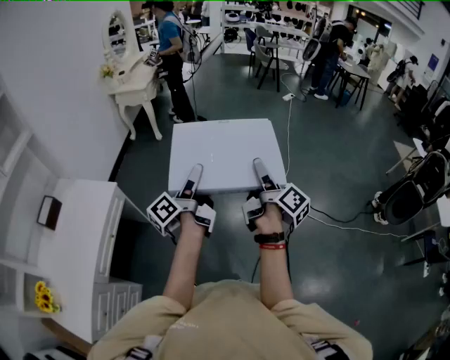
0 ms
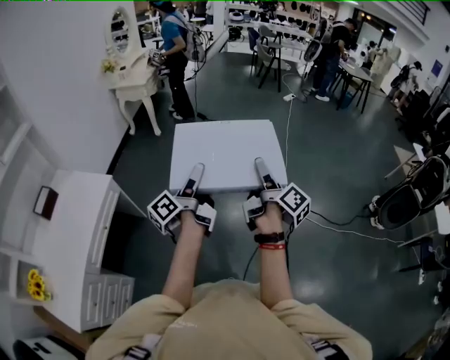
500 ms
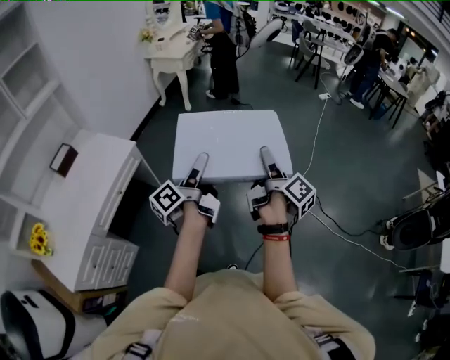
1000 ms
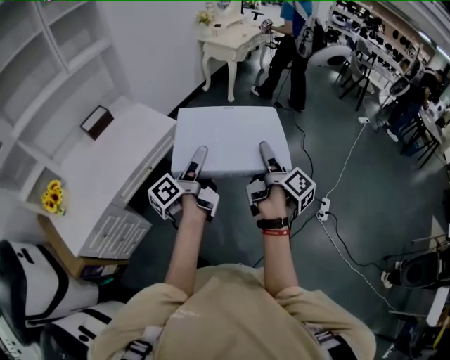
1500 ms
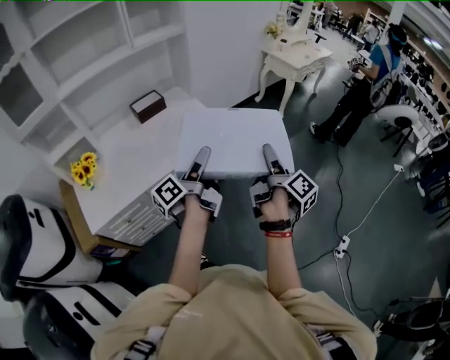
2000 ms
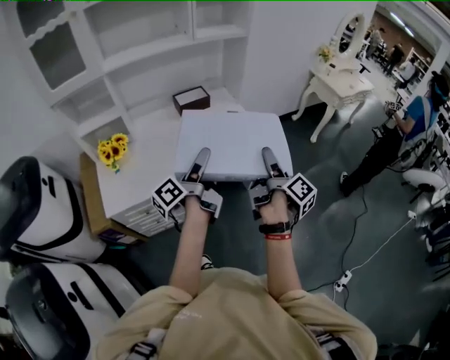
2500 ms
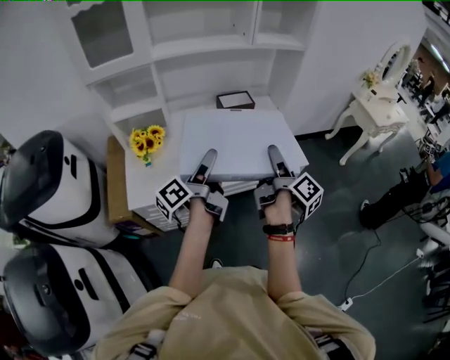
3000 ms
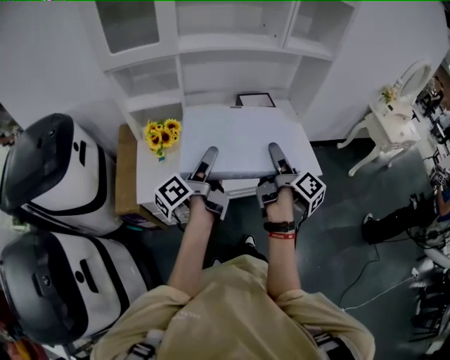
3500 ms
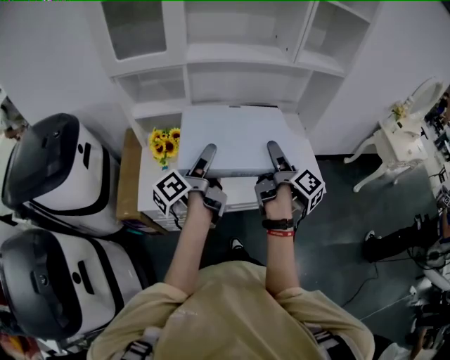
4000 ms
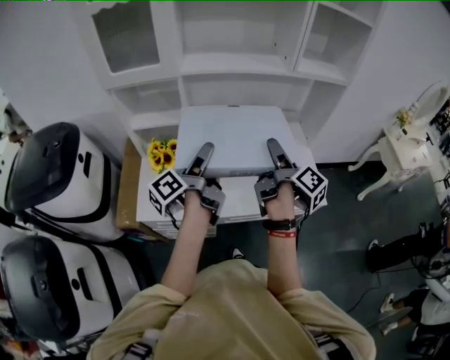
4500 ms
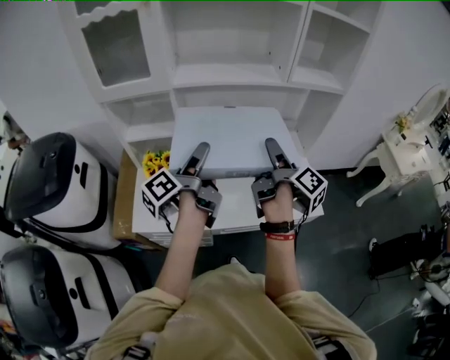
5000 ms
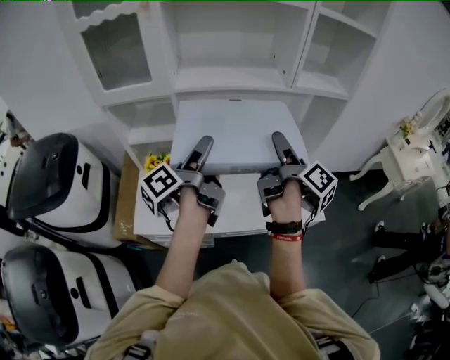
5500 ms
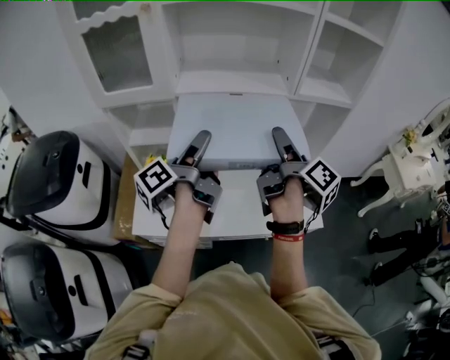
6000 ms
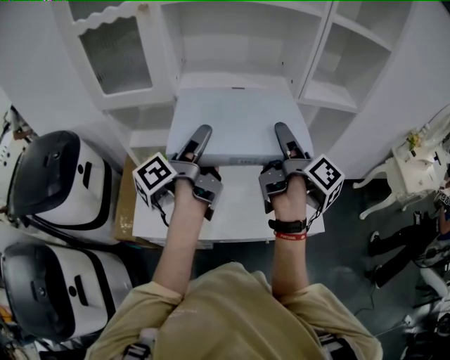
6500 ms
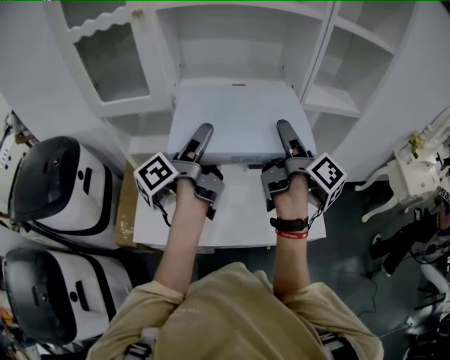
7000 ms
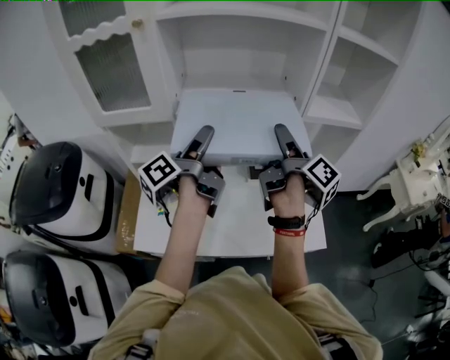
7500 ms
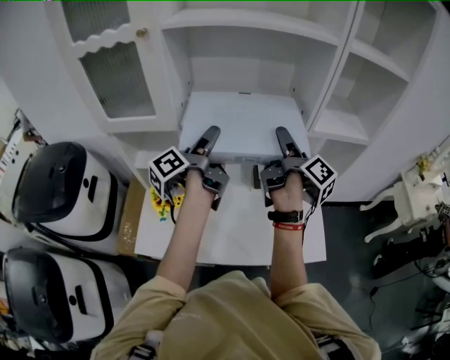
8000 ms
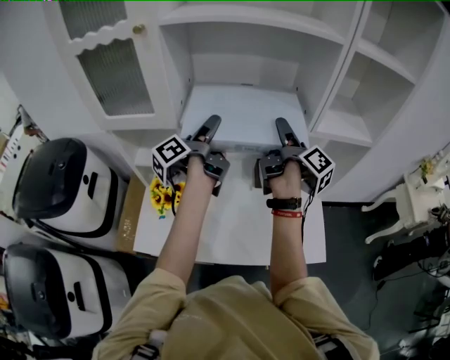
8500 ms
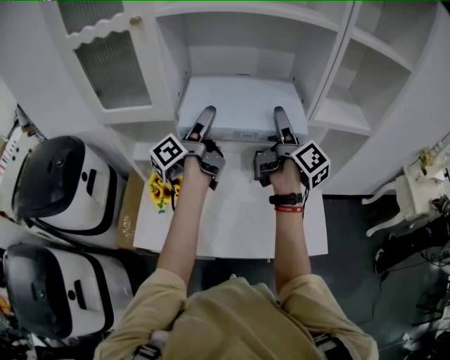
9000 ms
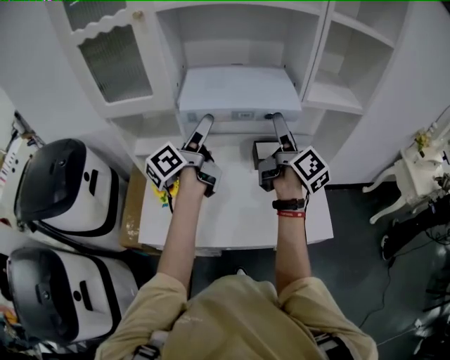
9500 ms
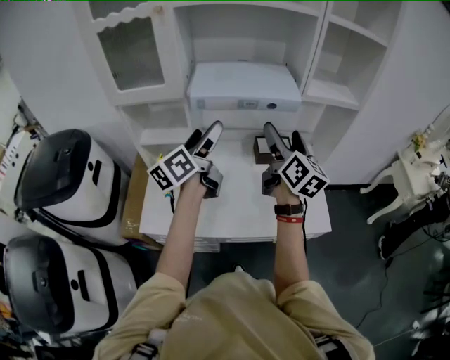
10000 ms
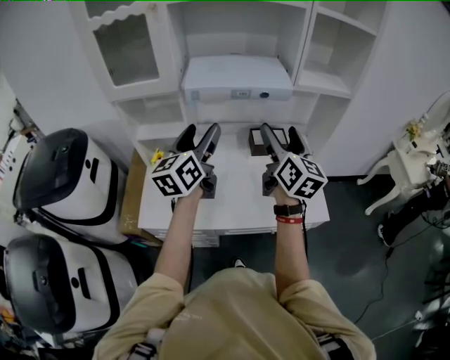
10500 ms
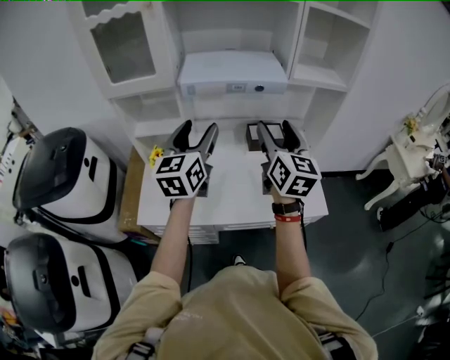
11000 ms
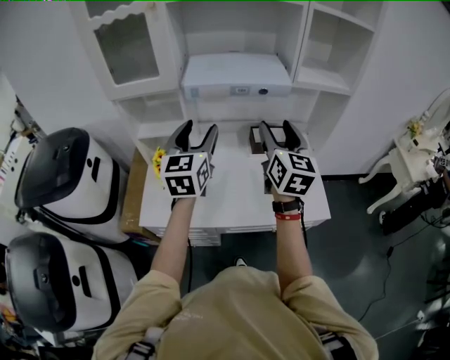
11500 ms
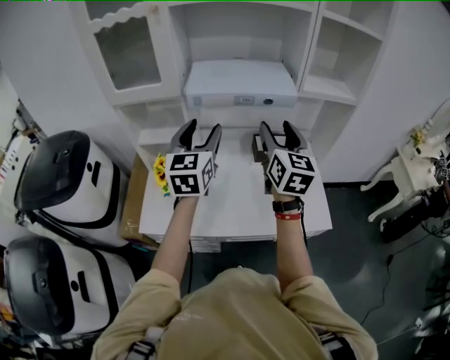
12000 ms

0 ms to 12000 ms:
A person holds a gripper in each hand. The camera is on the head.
0 ms to 2000 ms: The left gripper ends up roughly 40 cm from where it was, and changes its angle by roughly 40 degrees; the right gripper shifts by approximately 40 cm, and turns by some 40 degrees.
2000 ms to 4000 ms: Both grippers are carried about 40 cm. The right gripper swivels approximately 40 degrees; the left gripper rotates roughly 30 degrees.
4000 ms to 6000 ms: The grippers both shift upward and forward by roughly 15 cm.
6000 ms to 8000 ms: Both grippers travel together forward, about 15 cm.
8000 ms to 10000 ms: Both grippers travel together backward, roughly 10 cm. The right gripper rolls counterclockwise, seen from behind, by some 50 degrees. Meanwhile the left gripper rotates about 40 degrees.
10000 ms to 12000 ms: The left gripper rolls clockwise, seen from behind, by about 50 degrees, and closes its fingers, while the right gripper swivels some 20 degrees, and closes up.

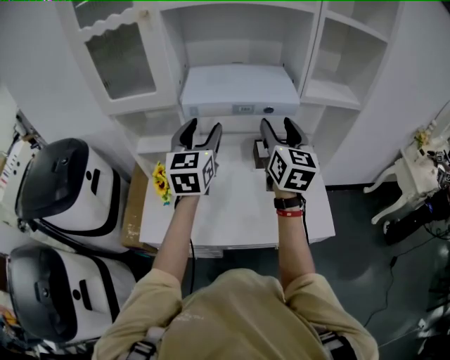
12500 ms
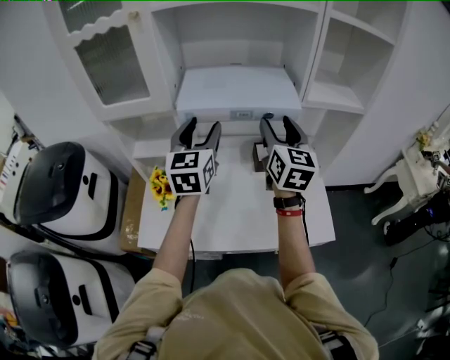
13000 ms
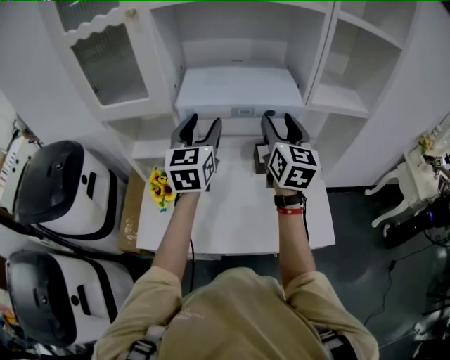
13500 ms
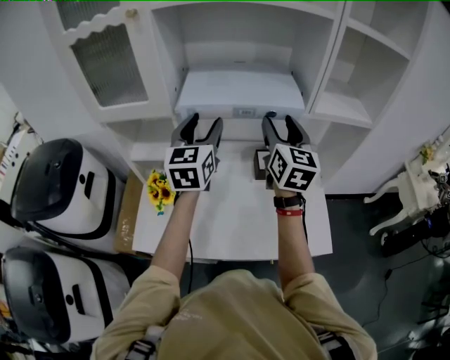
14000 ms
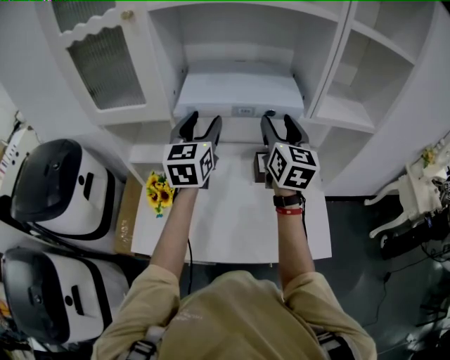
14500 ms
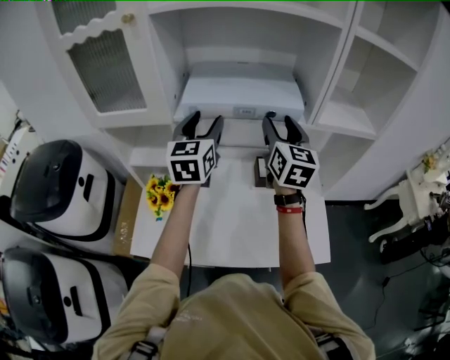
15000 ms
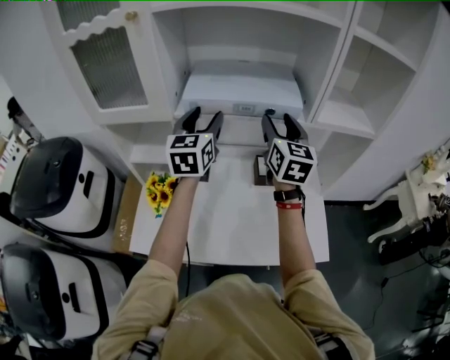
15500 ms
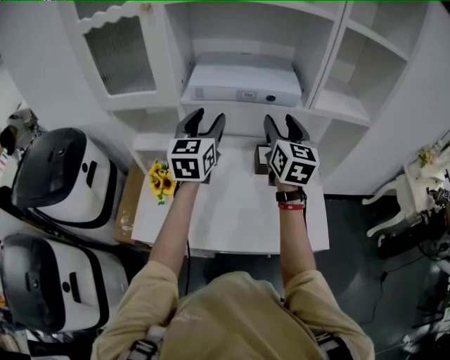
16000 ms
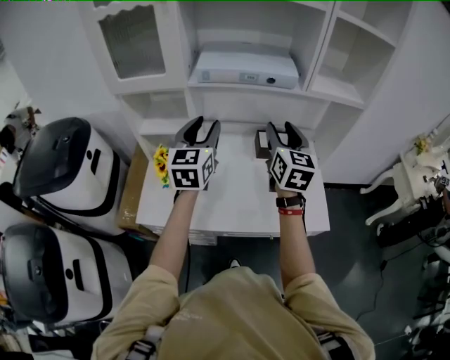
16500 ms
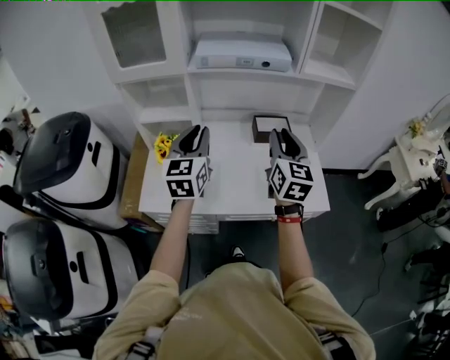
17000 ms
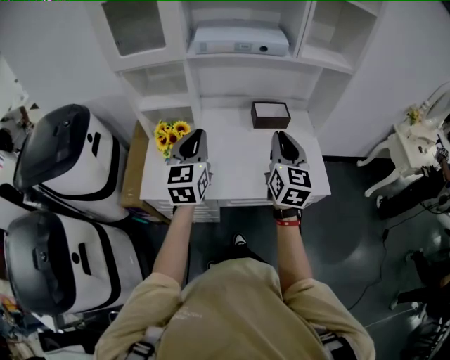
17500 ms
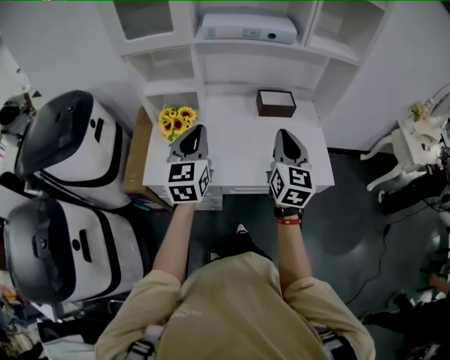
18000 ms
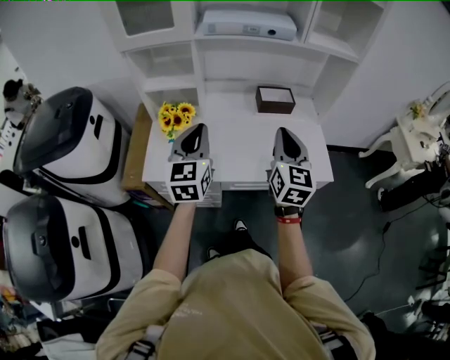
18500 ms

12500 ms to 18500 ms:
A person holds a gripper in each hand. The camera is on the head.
12500 ms to 14500 ms: The two grippers go roughly 10 cm forward.
14500 ms to 16500 ms: Both grippers travel together backward, about 15 cm.
16500 ms to 18500 ms: The left gripper is displaced backward and downward by about 20 cm, and closes its fingers. The right gripper heads backward, covering approximately 20 cm, and closes.

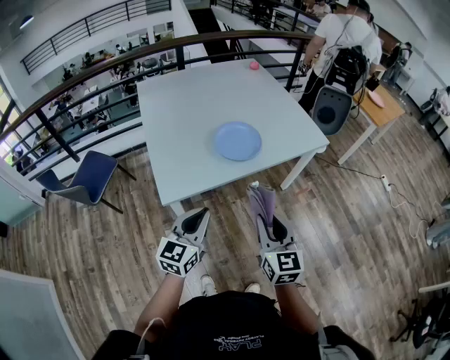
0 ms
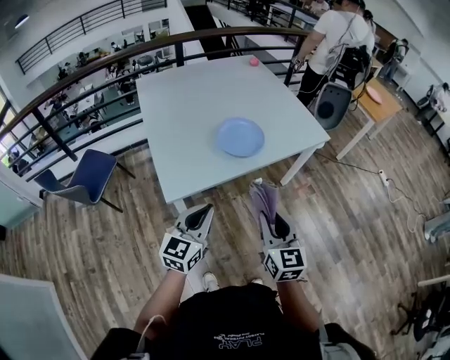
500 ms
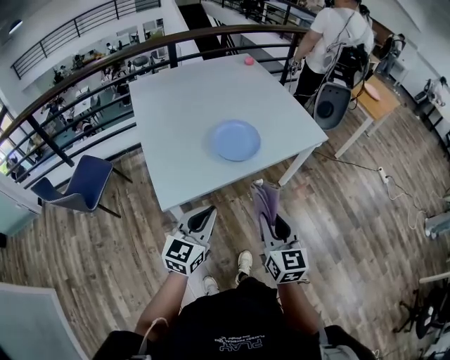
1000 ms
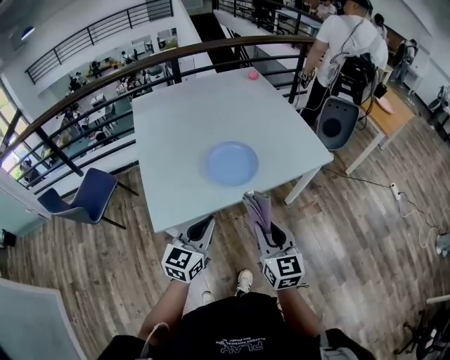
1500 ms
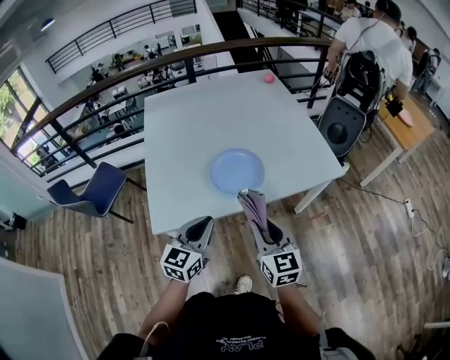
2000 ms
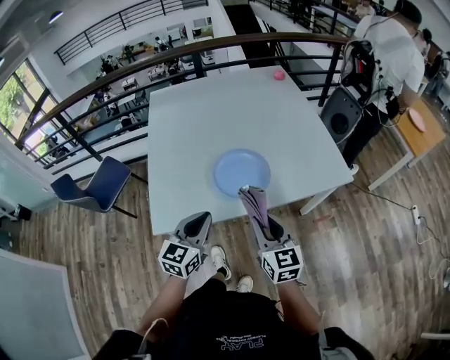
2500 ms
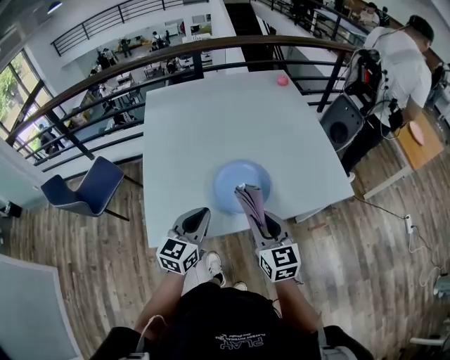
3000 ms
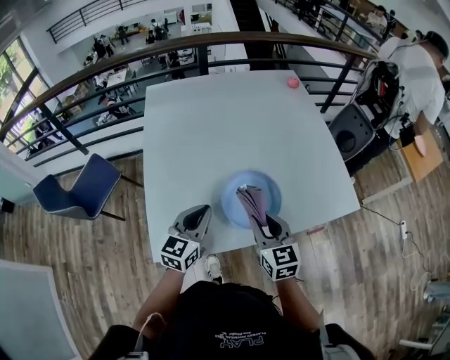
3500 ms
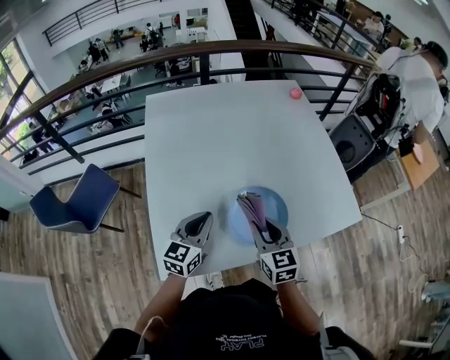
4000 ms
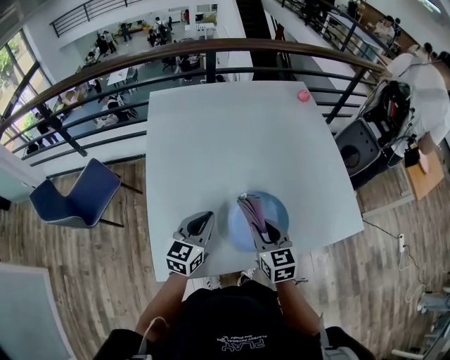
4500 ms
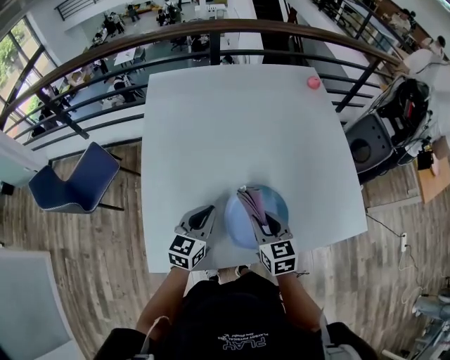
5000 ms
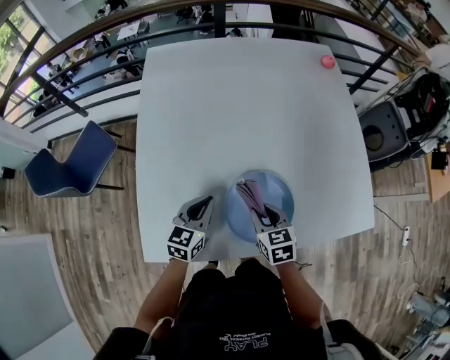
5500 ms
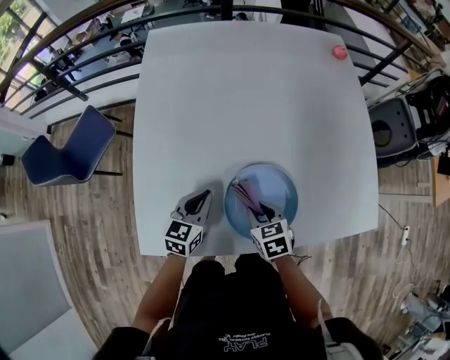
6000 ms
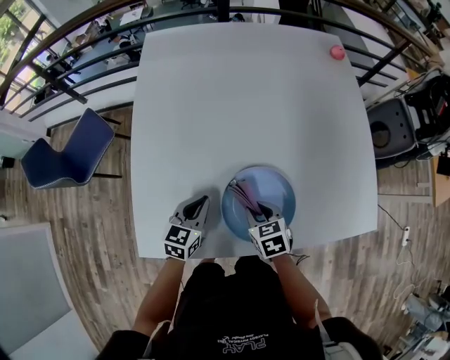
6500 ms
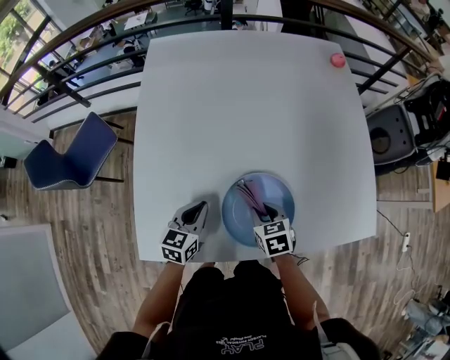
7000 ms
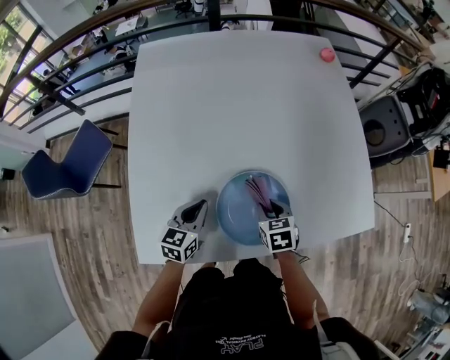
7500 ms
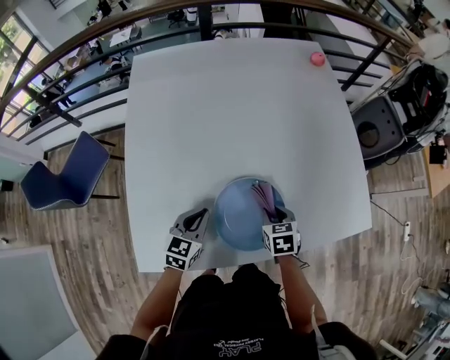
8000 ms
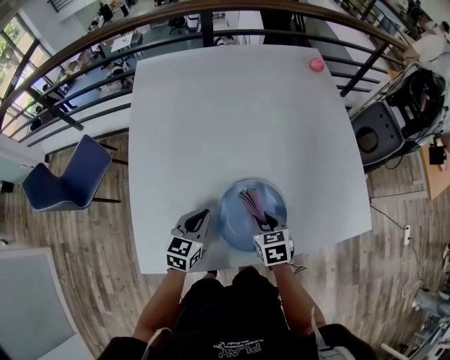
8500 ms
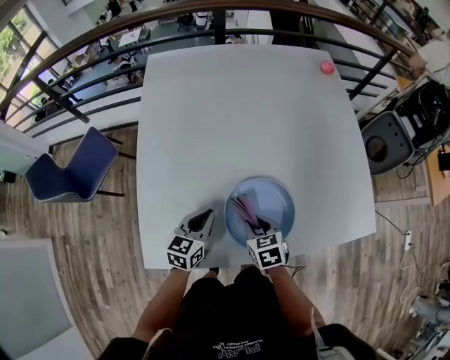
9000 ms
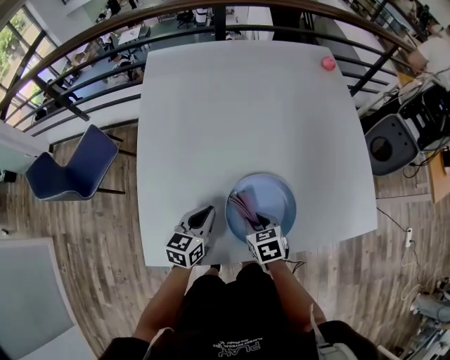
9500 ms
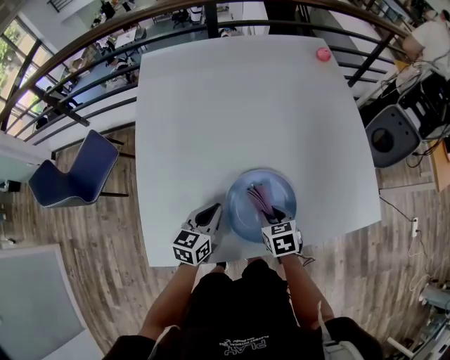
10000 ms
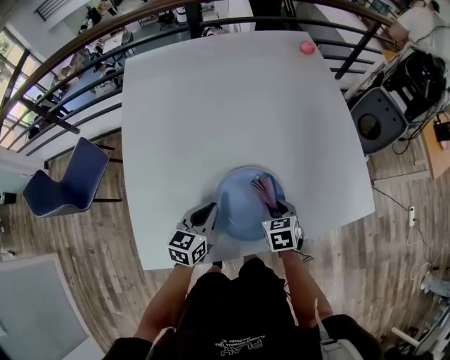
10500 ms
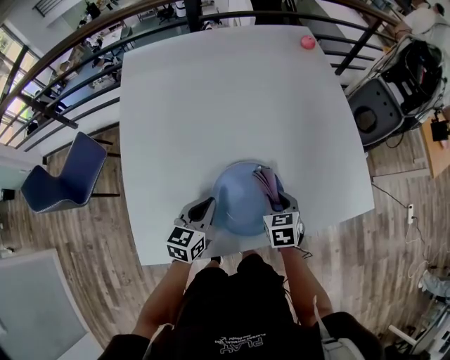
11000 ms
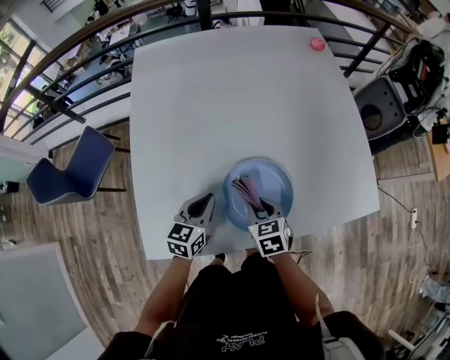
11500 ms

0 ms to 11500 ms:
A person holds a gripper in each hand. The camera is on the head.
0 ms to 2000 ms: The right gripper heads forward, covering some 20 cm, while the left gripper travels forward and to the right by roughly 20 cm.
2000 ms to 4000 ms: Both grippers move forward and to the left, some 30 cm.
4000 ms to 6000 ms: The left gripper travels downward and forward by some 15 cm, while the right gripper shifts some 20 cm downward, and angles its fingers downward, by about 30 degrees.
6000 ms to 7500 ms: The right gripper is displaced to the right by about 5 cm.
7500 ms to 9500 ms: The right gripper shifts roughly 5 cm to the left.
9500 ms to 11500 ms: The right gripper reaches some 10 cm to the right, then returns.
